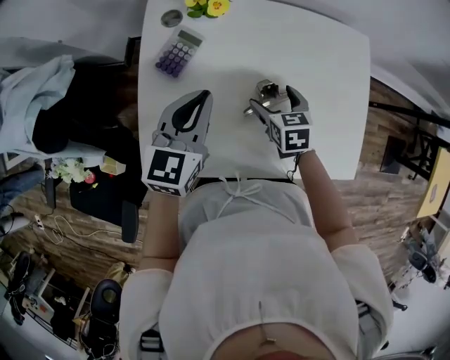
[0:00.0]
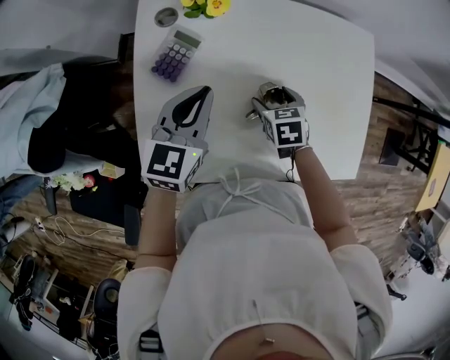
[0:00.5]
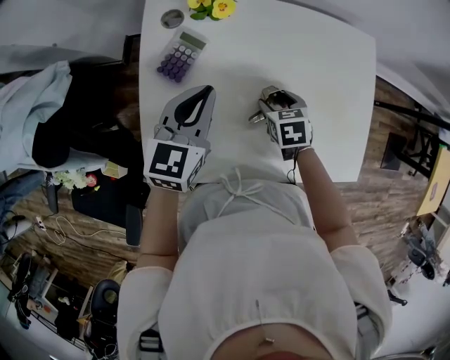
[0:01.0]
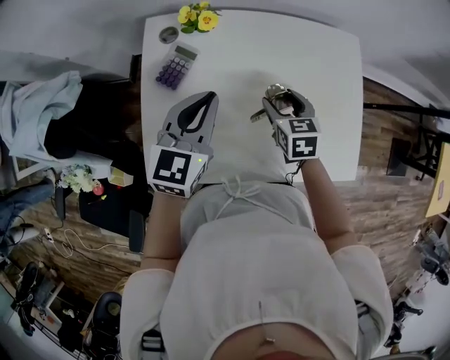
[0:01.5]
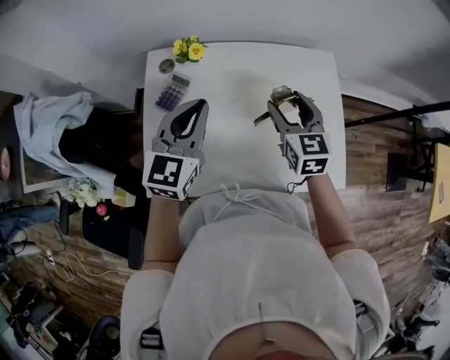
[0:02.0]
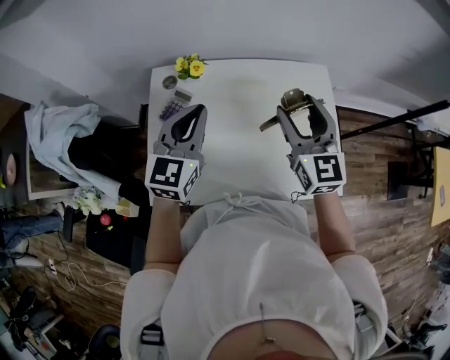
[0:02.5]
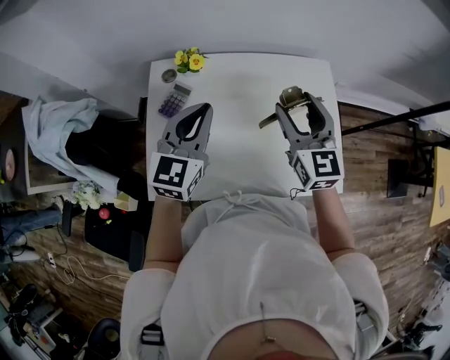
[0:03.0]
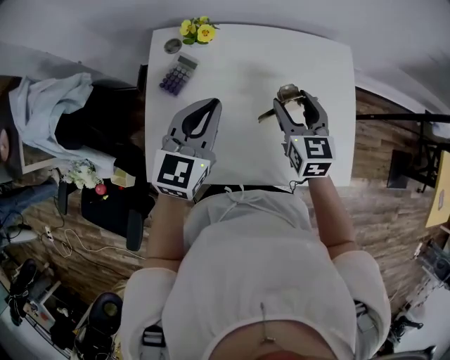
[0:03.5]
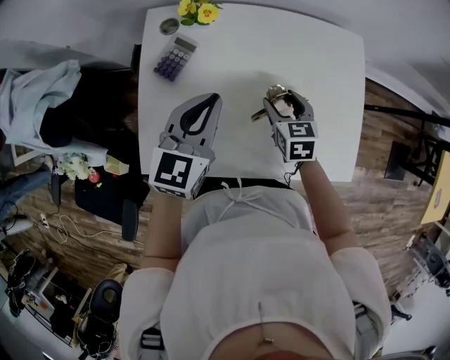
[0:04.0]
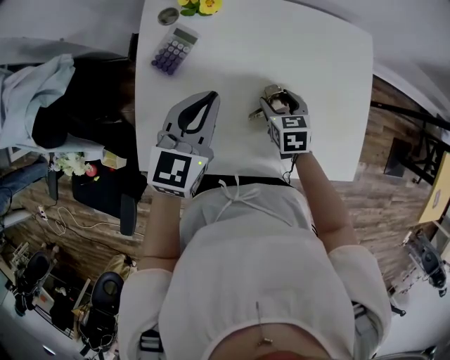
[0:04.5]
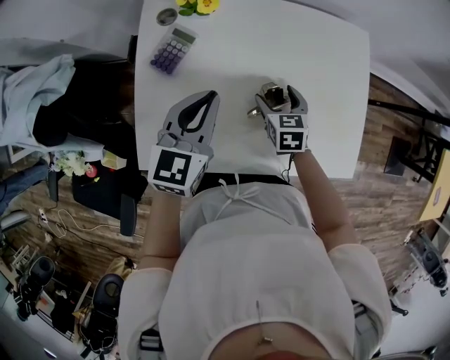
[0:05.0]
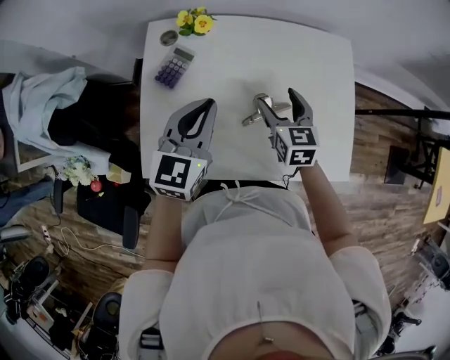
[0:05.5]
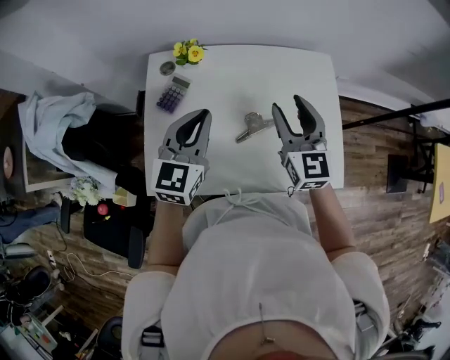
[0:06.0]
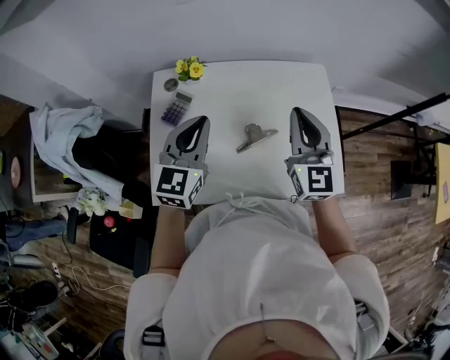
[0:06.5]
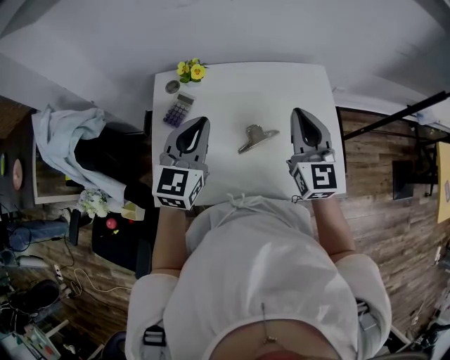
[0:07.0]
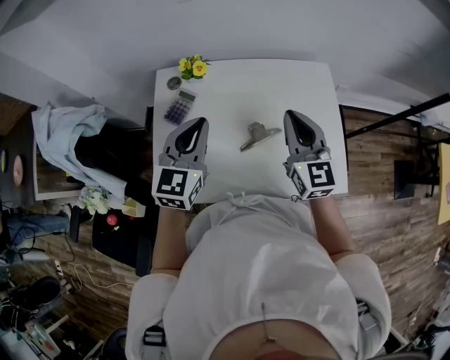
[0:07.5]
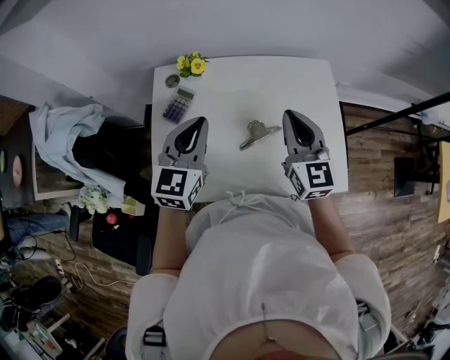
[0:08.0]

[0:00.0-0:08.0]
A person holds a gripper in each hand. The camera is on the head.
0:00.0 to 0:02.0: The right gripper heads upward, covering roughly 20 cm, turns by some 30 degrees, and closes its fingers; the left gripper moves upward and to the right, roughly 10 cm.
0:02.0 to 0:04.0: The right gripper shifts some 15 cm downward, and changes its angle by about 20 degrees; the left gripper travels downward by about 10 cm.
0:04.0 to 0:06.0: The left gripper shifts approximately 5 cm upward. The right gripper heads upward, covering roughly 20 cm, and tips its fingers upward by some 40 degrees.
0:06.0 to 0:08.0: The right gripper closes its fingers.

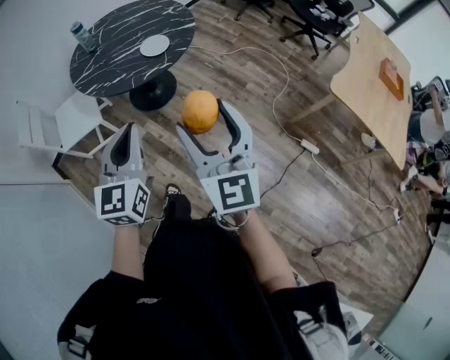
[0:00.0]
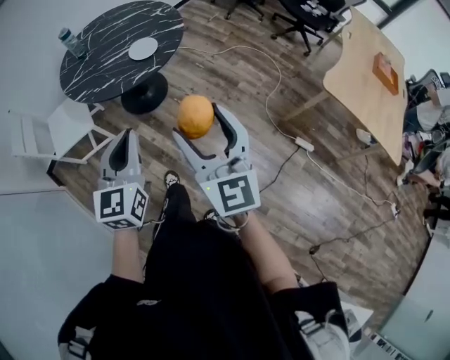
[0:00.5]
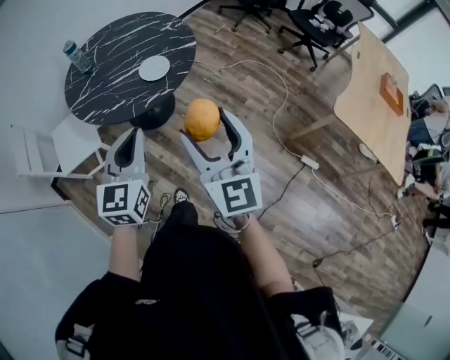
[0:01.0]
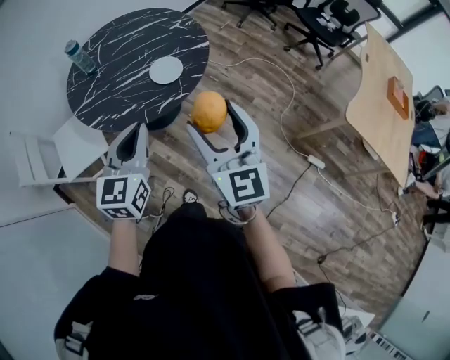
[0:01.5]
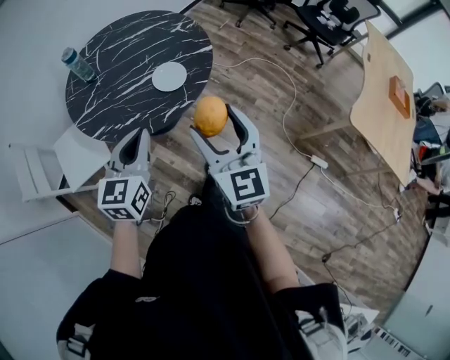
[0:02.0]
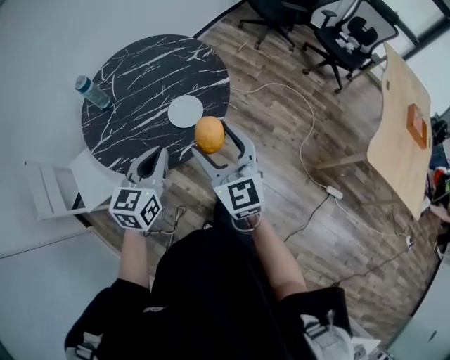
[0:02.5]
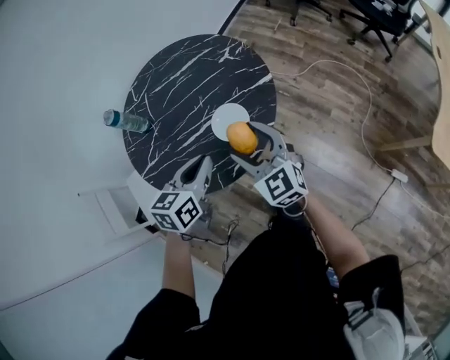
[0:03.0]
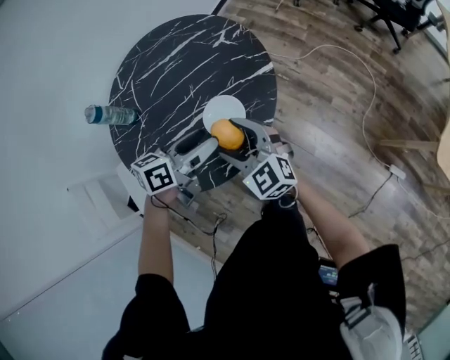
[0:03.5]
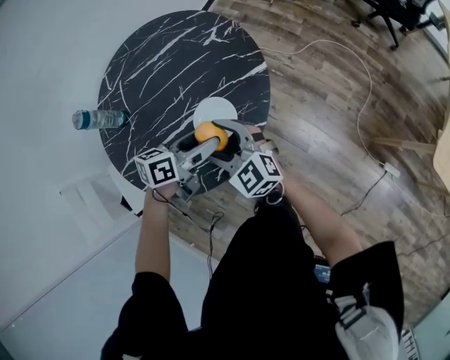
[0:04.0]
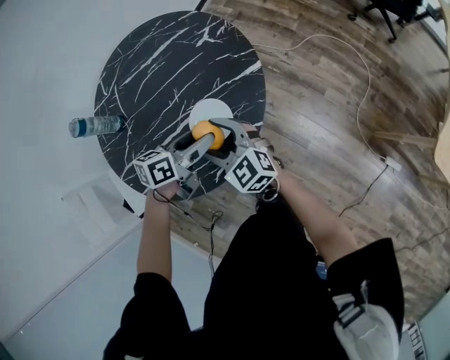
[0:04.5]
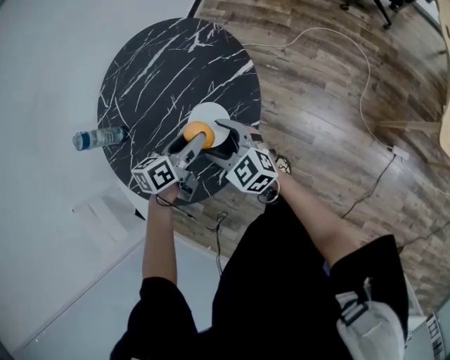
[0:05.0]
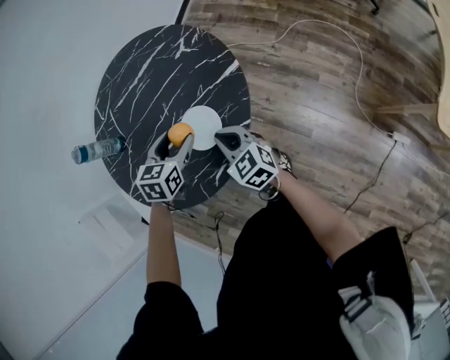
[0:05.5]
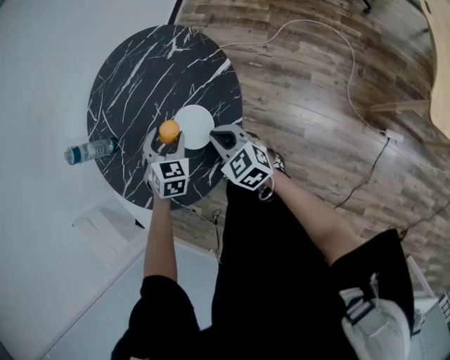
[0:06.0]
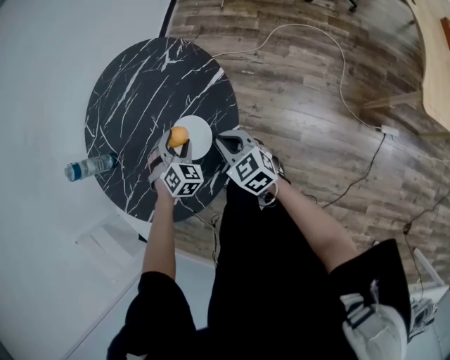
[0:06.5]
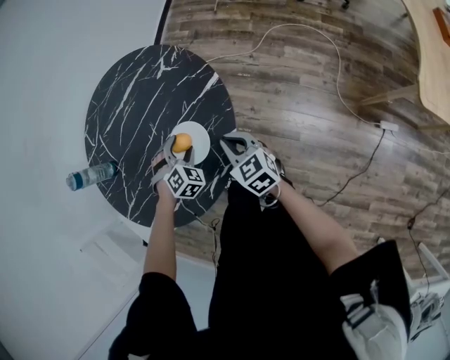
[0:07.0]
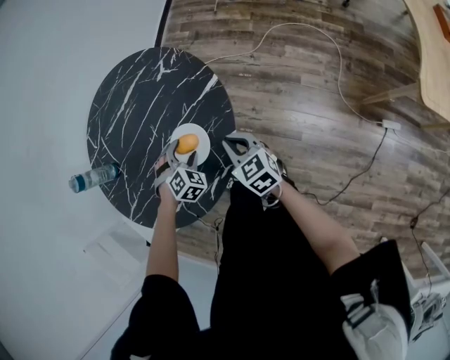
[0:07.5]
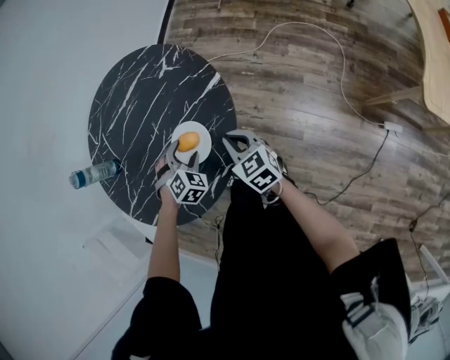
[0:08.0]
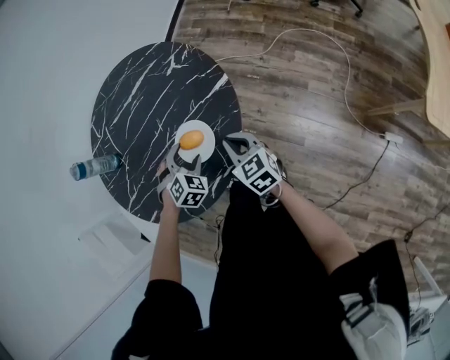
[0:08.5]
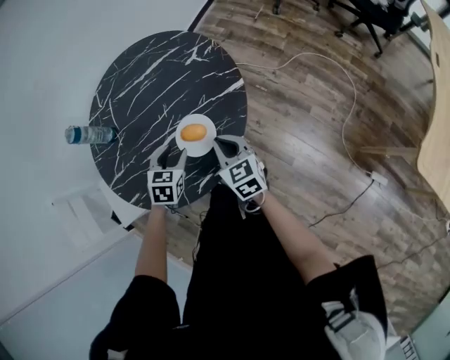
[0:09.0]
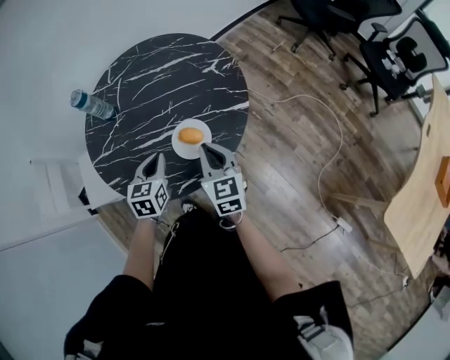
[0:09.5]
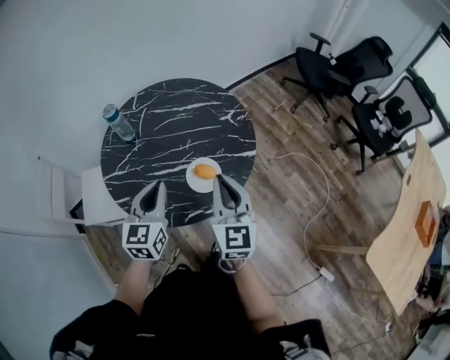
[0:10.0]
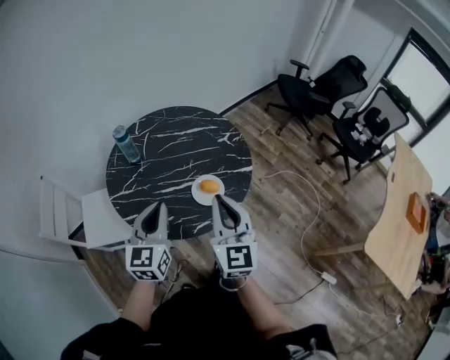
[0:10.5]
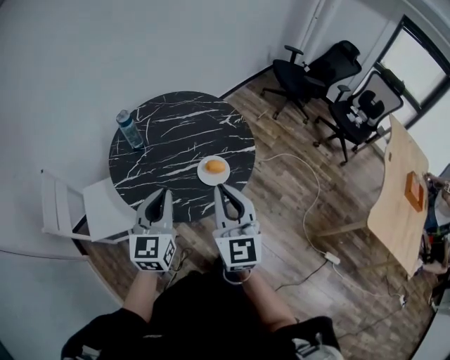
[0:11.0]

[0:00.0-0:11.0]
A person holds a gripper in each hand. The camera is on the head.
0:00.0 to 0:02.0: The grippers both shift forward by about 25 cm.
0:02.0 to 0:03.5: Both grippers travel together forward and downward, approximately 30 cm. The left gripper turns by about 50 degrees, and opens up, while the right gripper changes its angle by roughly 30 degrees.
0:03.5 to 0:05.5: The right gripper is displaced downward by about 10 cm, changes its angle by roughly 20 degrees, and closes. Meanwhile the left gripper heads downward and forward, covering roughly 10 cm, and swivels about 40 degrees.
0:05.5 to 0:07.5: The right gripper goes about 5 cm to the right. The left gripper travels downward by roughly 10 cm, and rolls clockwise, seen from behind, by about 50 degrees.
0:07.5 to 0:09.0: The left gripper is displaced upward and to the left by some 10 cm, and twists roughly 50 degrees counterclockwise, seen from behind. The right gripper moves some 5 cm.
0:09.0 to 0:11.0: The left gripper heads upward, backward and to the left, covering some 35 cm, tips its fingers upward by roughly 40 degrees, and closes its fingers. The right gripper travels upward and backward by approximately 35 cm, and turns by approximately 30 degrees.

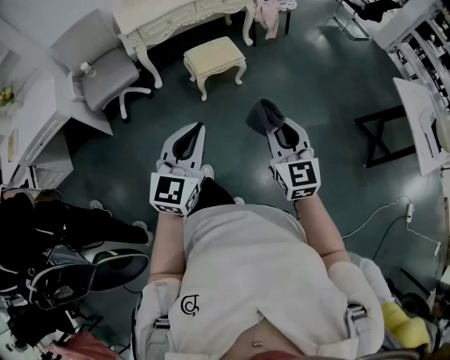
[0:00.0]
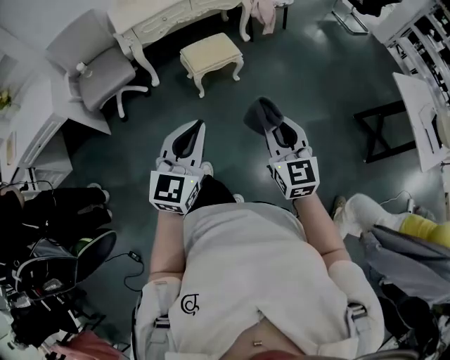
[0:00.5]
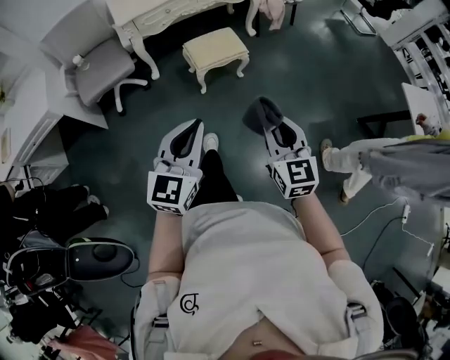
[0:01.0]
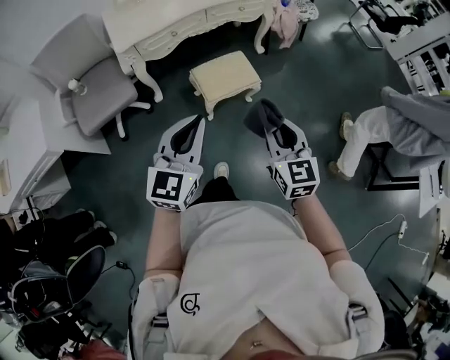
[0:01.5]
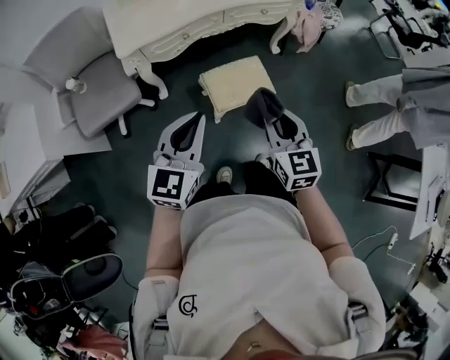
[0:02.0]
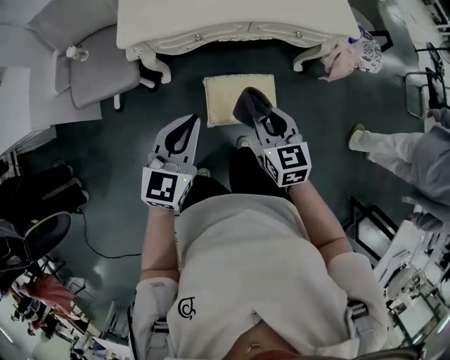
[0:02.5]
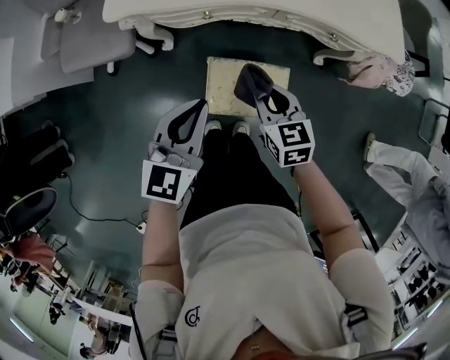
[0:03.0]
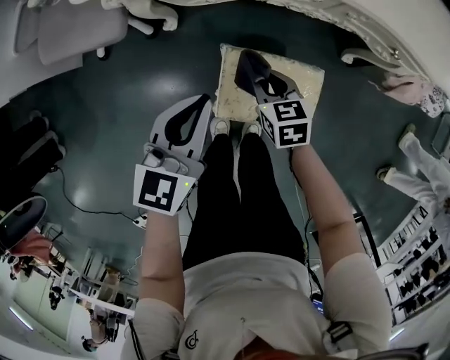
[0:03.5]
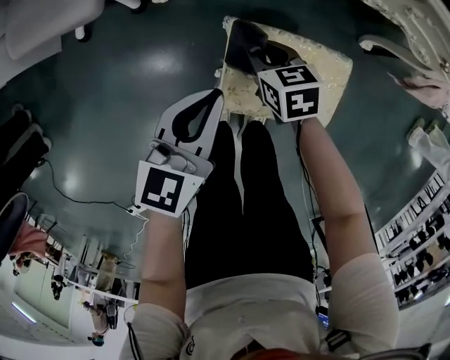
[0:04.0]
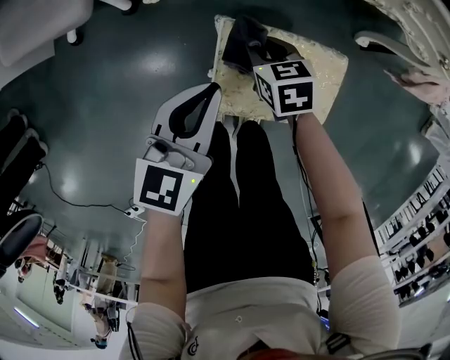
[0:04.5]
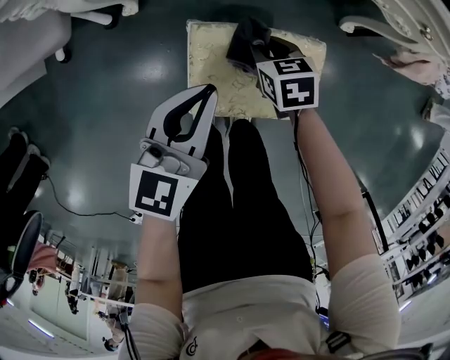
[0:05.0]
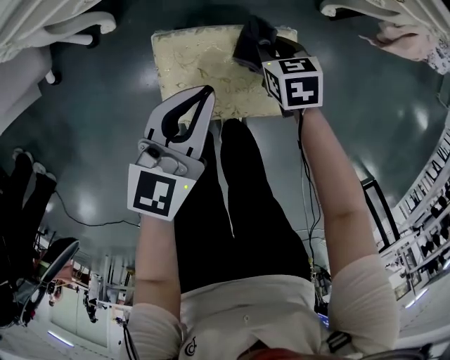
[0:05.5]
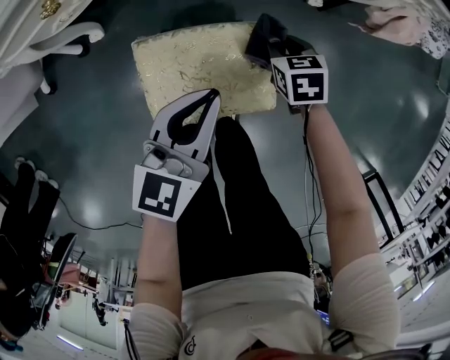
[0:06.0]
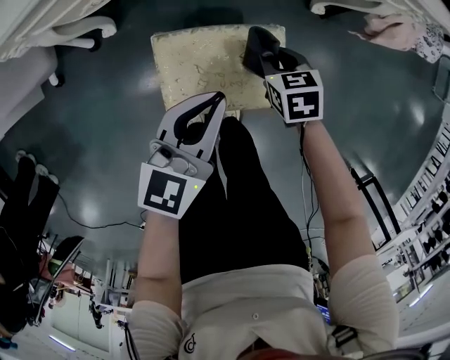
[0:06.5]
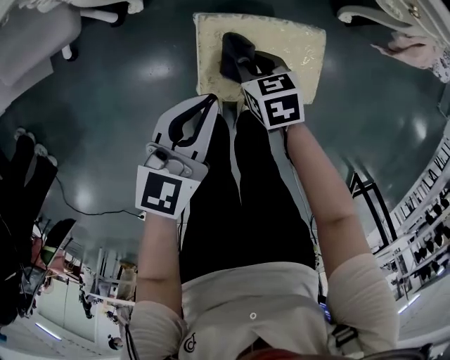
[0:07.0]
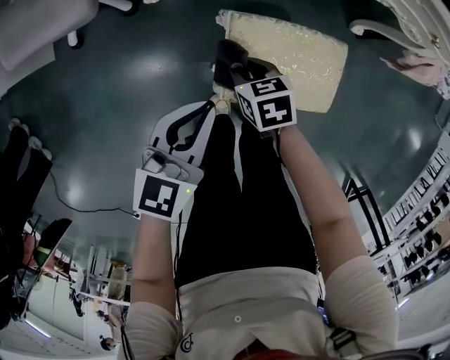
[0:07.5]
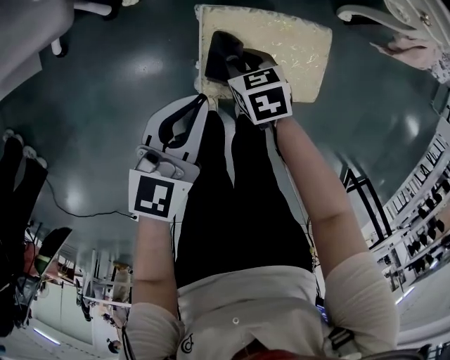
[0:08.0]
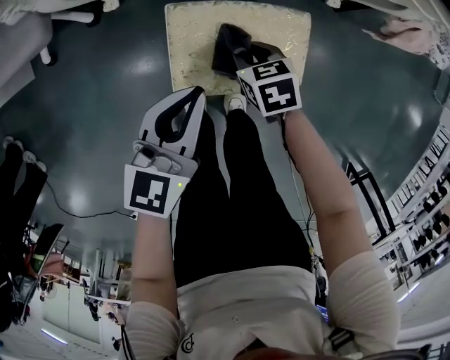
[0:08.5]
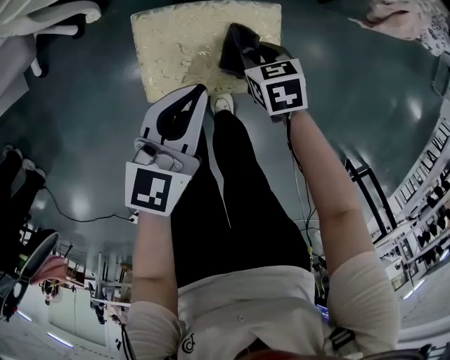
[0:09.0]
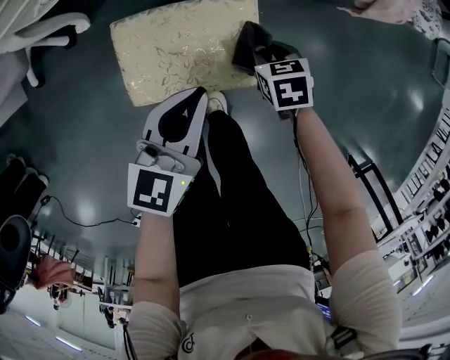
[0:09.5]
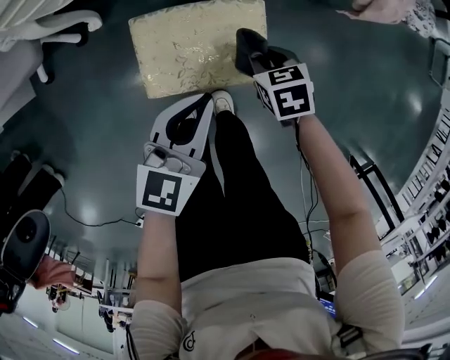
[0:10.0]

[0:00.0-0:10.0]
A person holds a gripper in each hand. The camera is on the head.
0:00.0 to 0:02.0: The pair of grippers is taken forward, some 50 cm.
0:02.0 to 0:04.0: Both grippers move downward, about 40 cm. The left gripper changes its angle by some 40 degrees; the right gripper angles its fingers downward, by some 30 degrees.
0:04.0 to 0:06.0: Both grippers move to the right, roughly 25 cm. The right gripper turns by approximately 20 degrees.
0:06.0 to 0:08.0: The grippers both shift to the left by about 20 cm.
0:08.0 to 0:10.0: Both grippers move to the right, about 20 cm.
